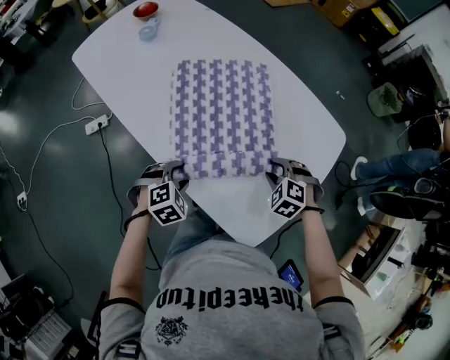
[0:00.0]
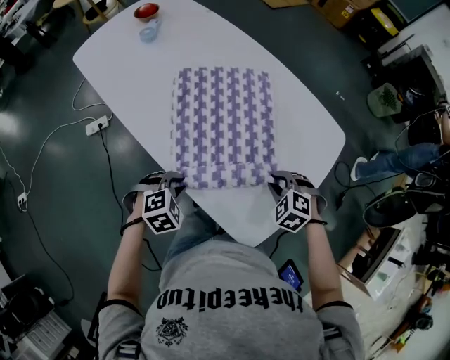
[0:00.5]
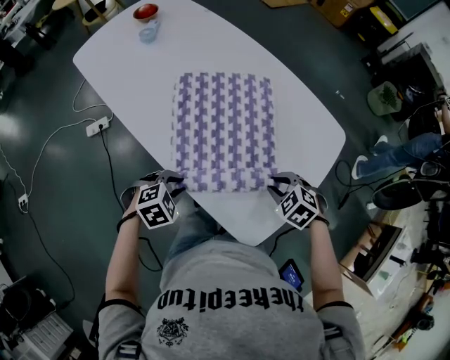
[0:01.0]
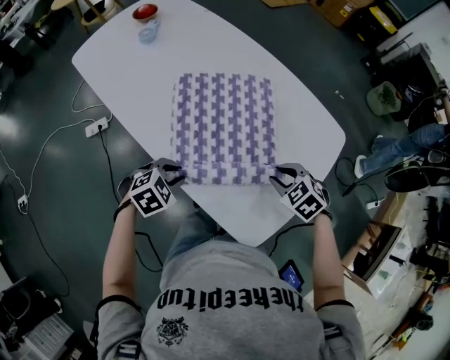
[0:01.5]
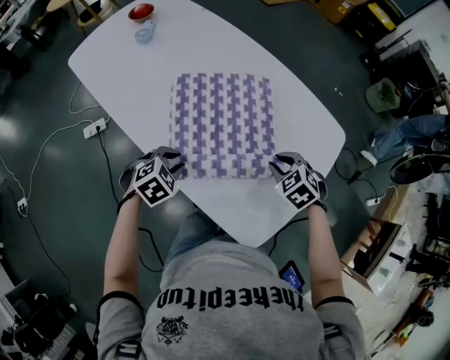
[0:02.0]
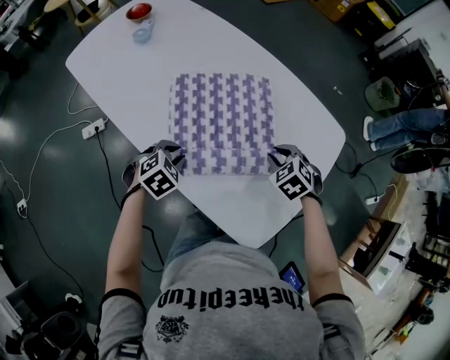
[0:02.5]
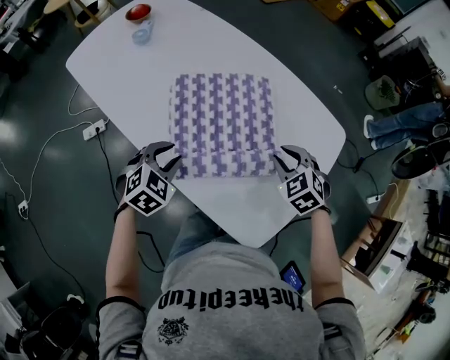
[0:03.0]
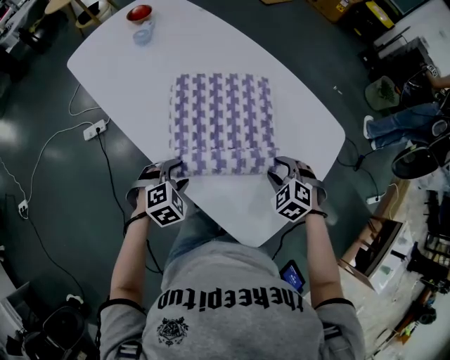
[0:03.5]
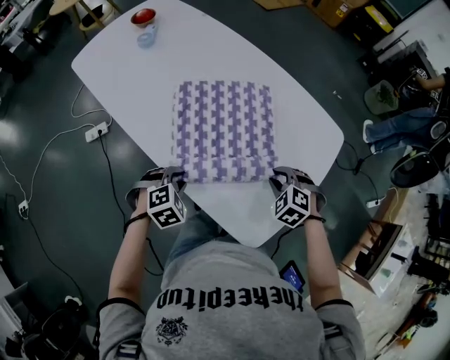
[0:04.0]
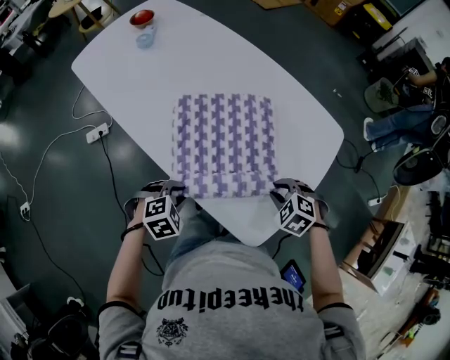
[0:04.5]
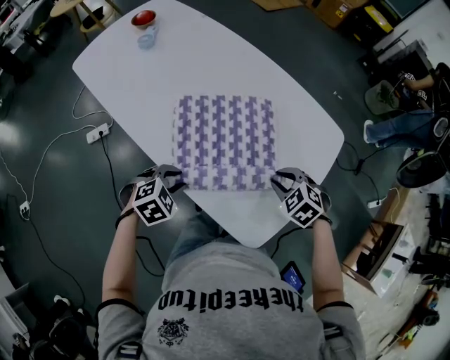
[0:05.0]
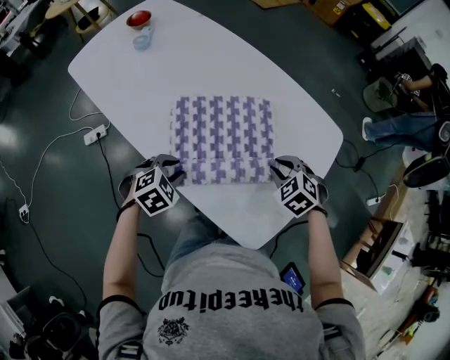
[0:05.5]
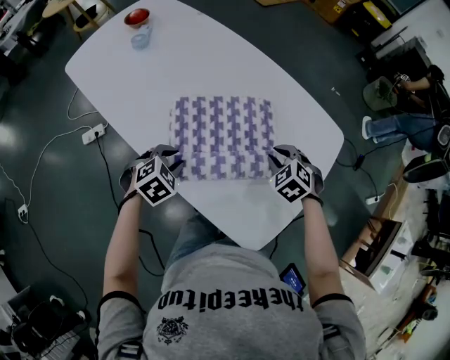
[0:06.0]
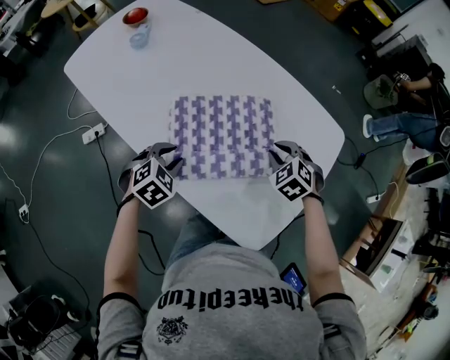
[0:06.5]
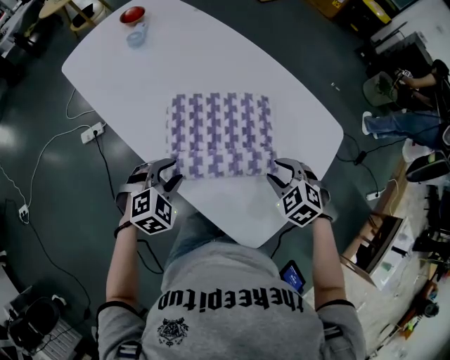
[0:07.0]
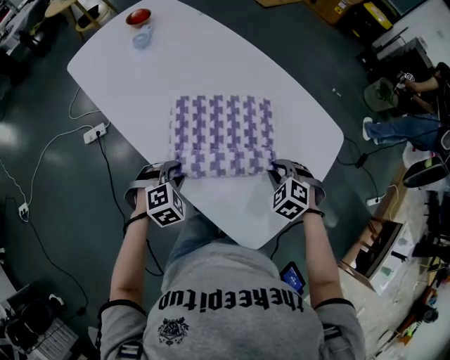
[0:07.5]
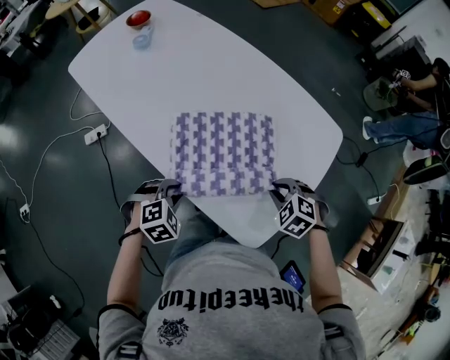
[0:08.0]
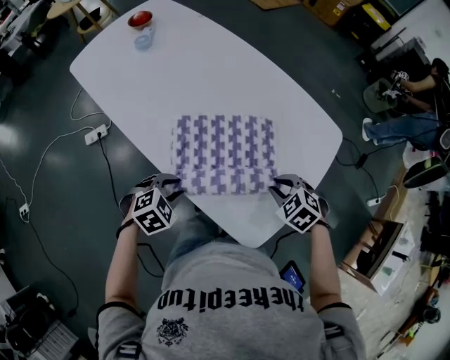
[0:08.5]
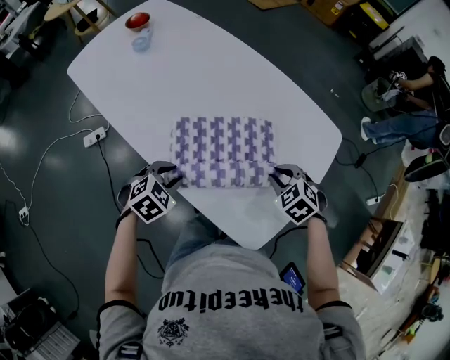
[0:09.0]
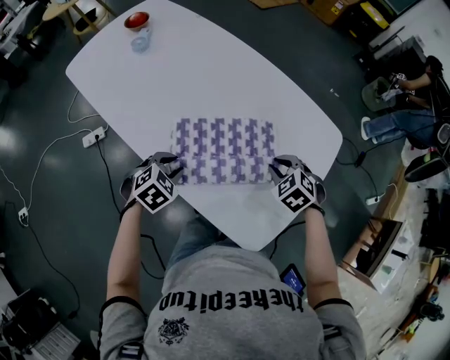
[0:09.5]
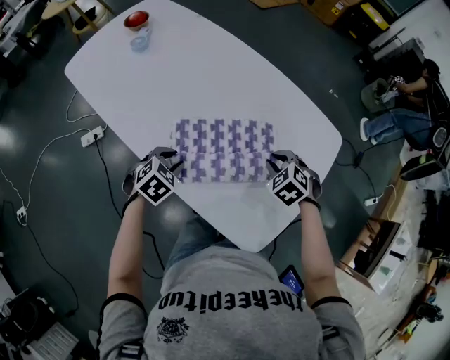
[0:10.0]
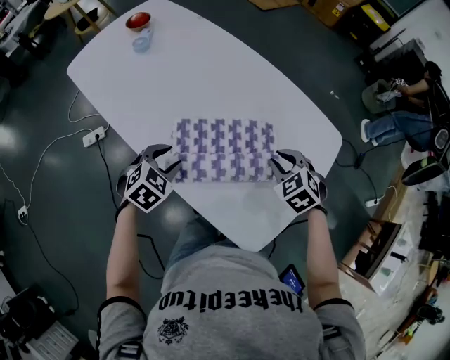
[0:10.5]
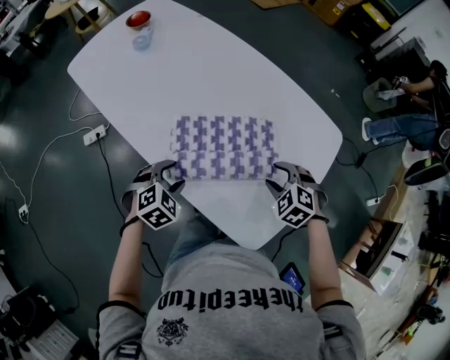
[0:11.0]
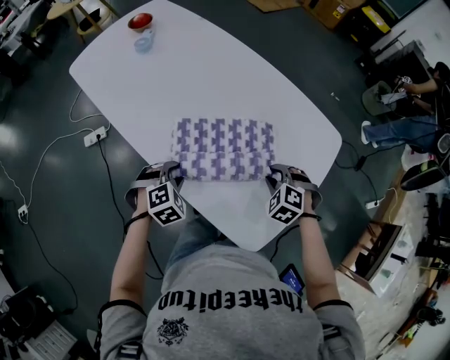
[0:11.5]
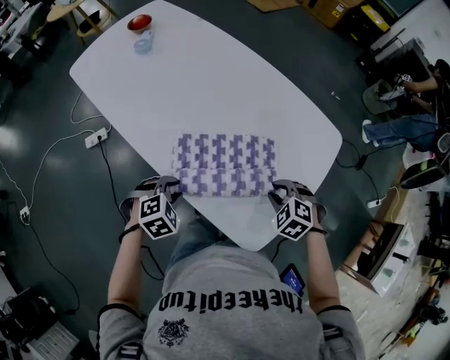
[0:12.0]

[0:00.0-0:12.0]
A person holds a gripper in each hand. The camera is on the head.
0:00.0 to 0:02.0: The left gripper is displaced forward by some 5 cm, and closes its fingers. Meanwhile the right gripper moves roughly 5 cm, and rotates roughly 20 degrees.
0:02.0 to 0:04.0: Both grippers travel together backward, roughly 5 cm. The right gripper opens, then closes once more; the left gripper opens, then closes again.
0:04.0 to 0:06.0: Both grippers move forward, some 10 cm.
0:06.0 to 0:08.0: The right gripper travels backward by some 5 cm.
0:08.0 to 0:10.0: Both grippers travel together forward, approximately 10 cm. The left gripper rotates roughly 20 degrees.
0:10.0 to 0:12.0: The left gripper opens, then closes once more, while the right gripper shifts roughly 5 cm backward, and opens and closes again.

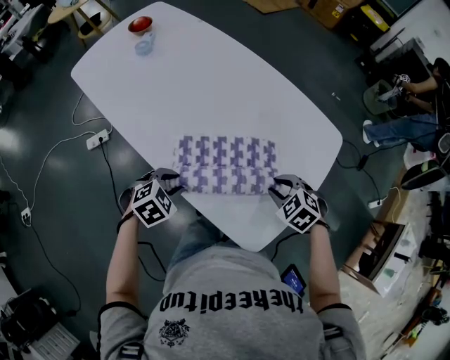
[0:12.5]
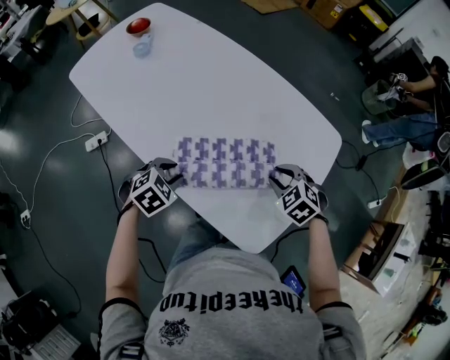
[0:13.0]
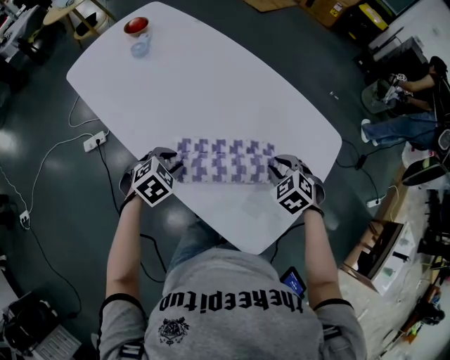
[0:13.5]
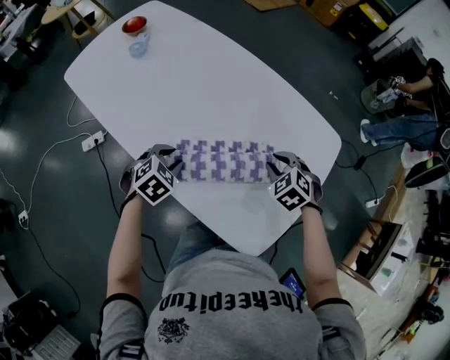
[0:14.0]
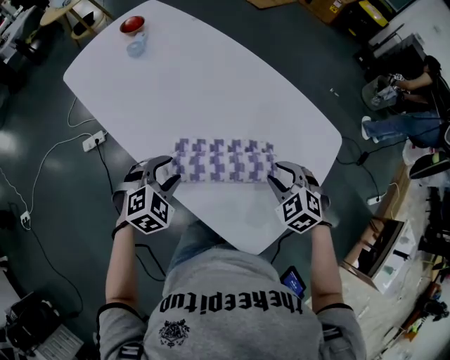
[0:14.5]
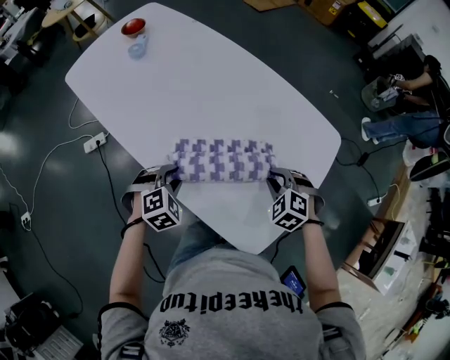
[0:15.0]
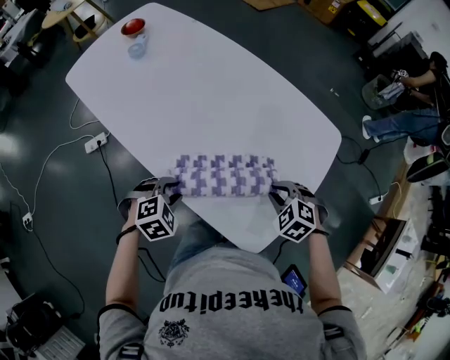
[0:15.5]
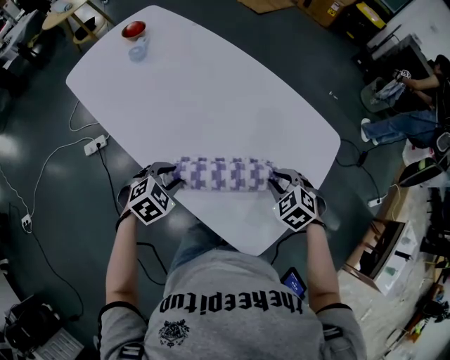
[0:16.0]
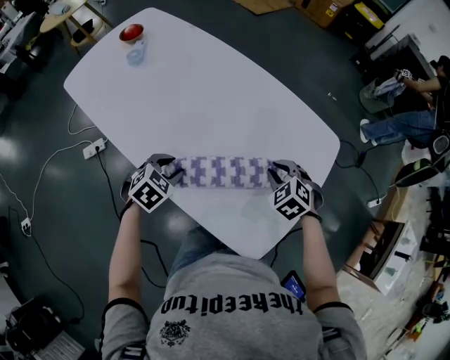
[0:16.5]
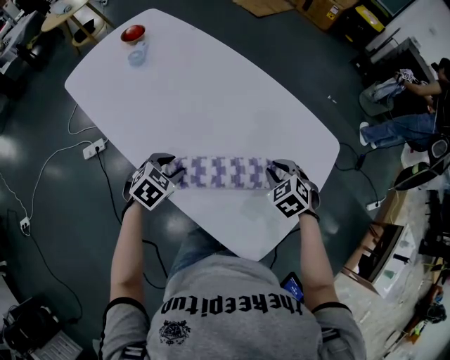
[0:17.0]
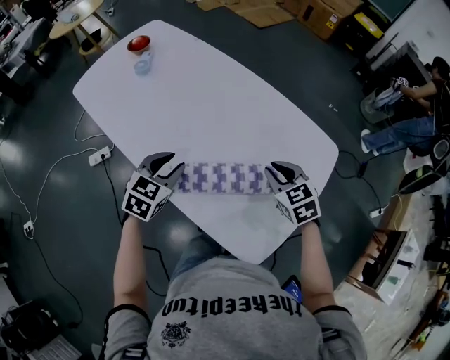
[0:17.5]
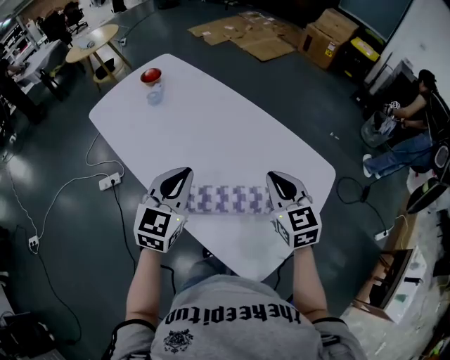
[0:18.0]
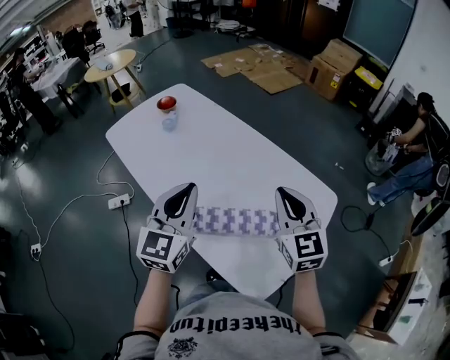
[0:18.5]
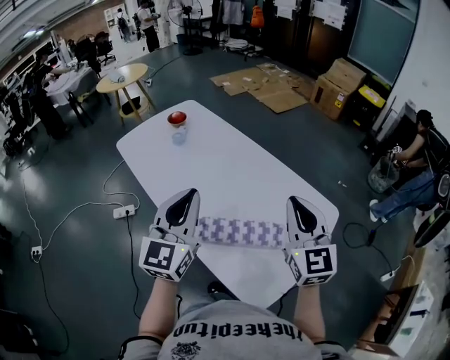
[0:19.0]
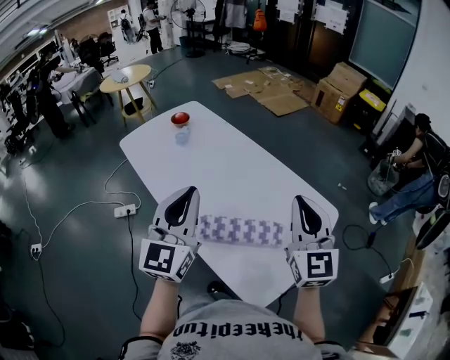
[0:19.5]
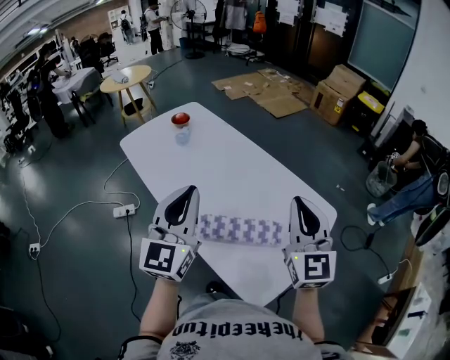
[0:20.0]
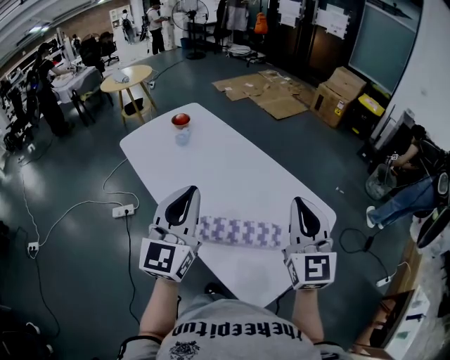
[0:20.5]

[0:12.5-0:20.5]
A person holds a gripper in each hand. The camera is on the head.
0:12.5 to 0:14.5: The grippers both shift forward by about 5 cm.
0:16.5 to 0:18.5: The two grippers go about 40 cm upward. The right gripper angles its fingers upward, by about 50 degrees. The left gripper angles its fingers upward, by some 50 degrees, and closes up.
0:18.5 to 0:20.5: The grippers both shift upward by about 15 cm.

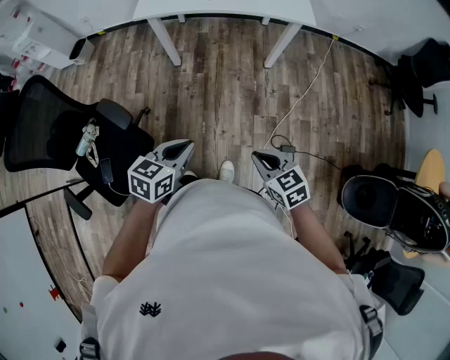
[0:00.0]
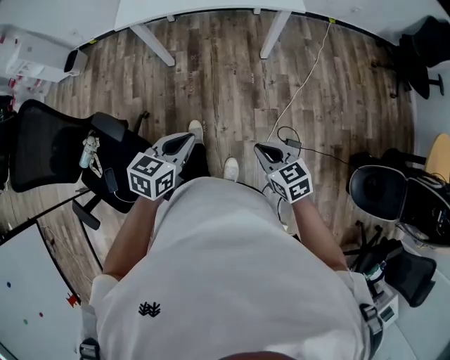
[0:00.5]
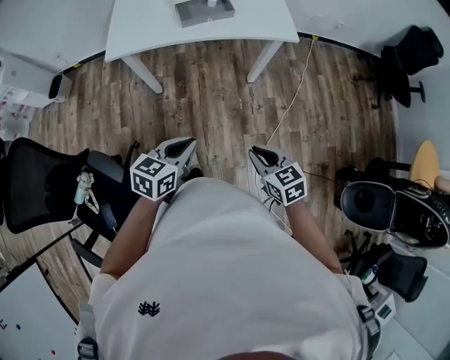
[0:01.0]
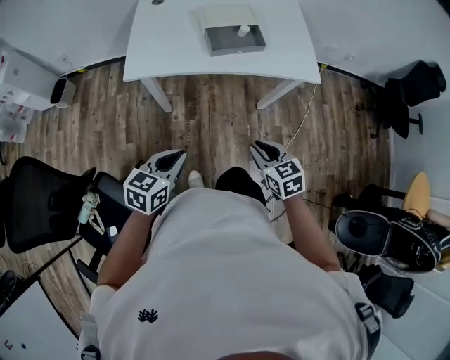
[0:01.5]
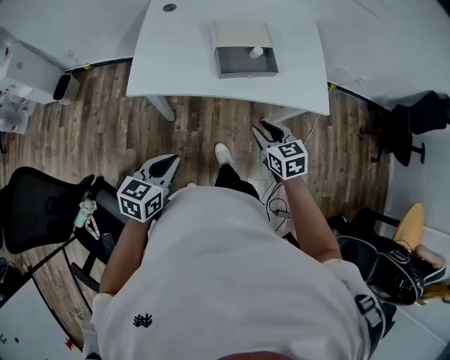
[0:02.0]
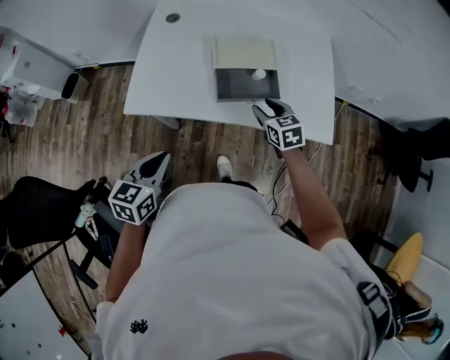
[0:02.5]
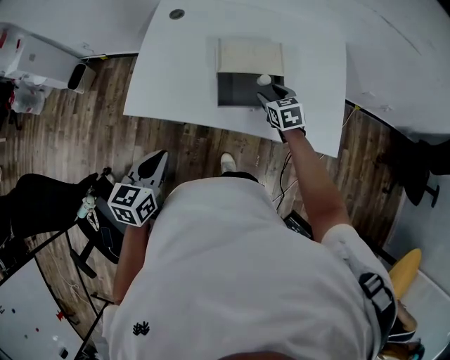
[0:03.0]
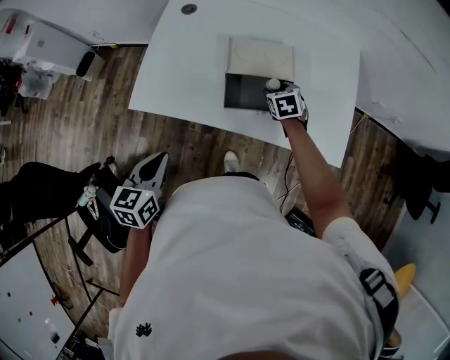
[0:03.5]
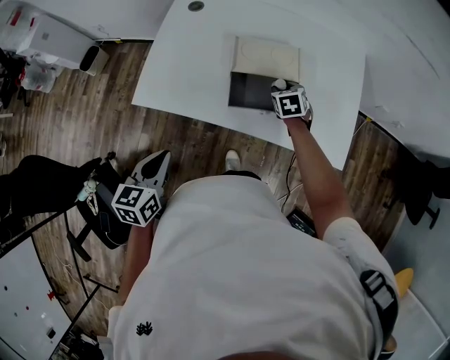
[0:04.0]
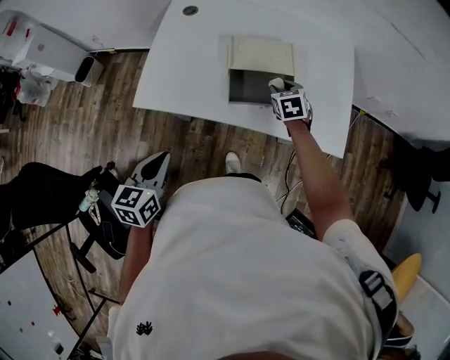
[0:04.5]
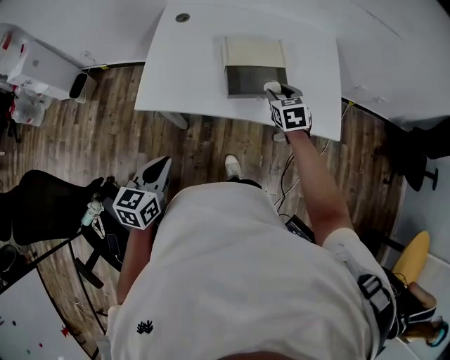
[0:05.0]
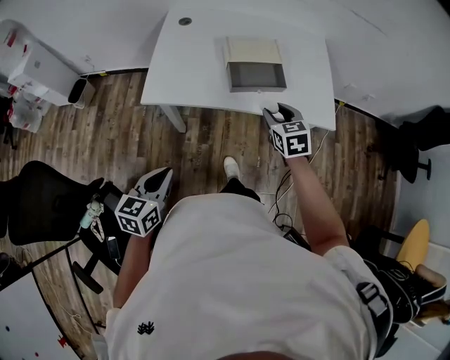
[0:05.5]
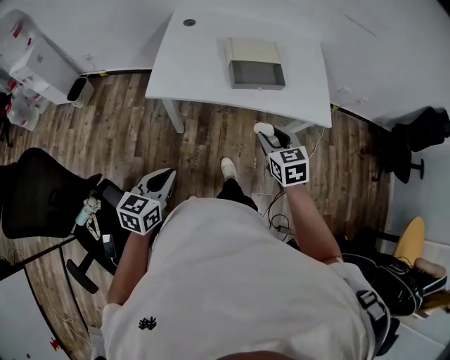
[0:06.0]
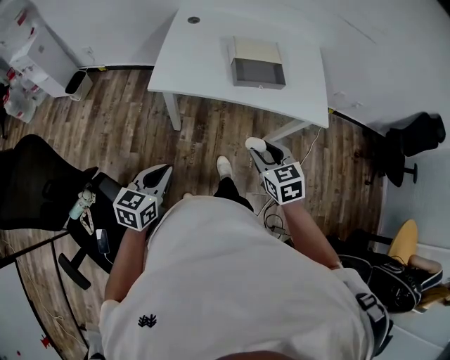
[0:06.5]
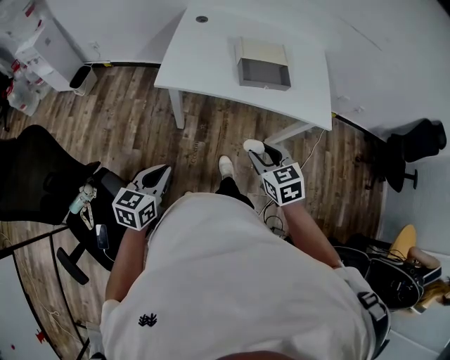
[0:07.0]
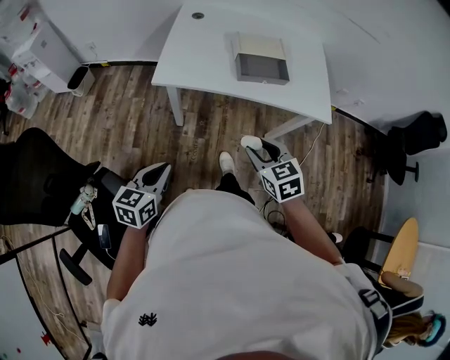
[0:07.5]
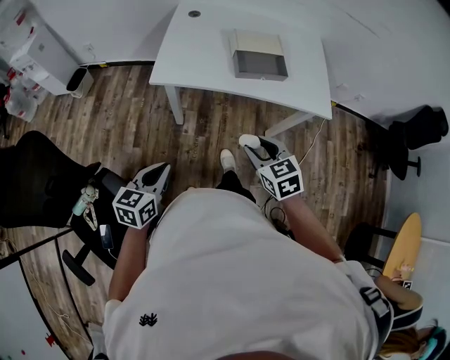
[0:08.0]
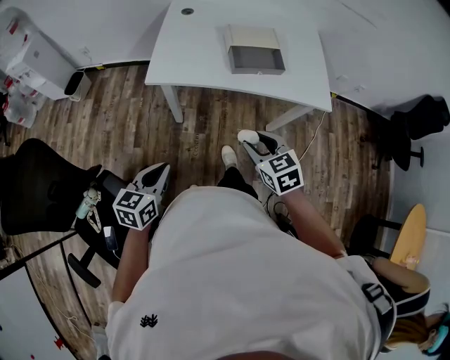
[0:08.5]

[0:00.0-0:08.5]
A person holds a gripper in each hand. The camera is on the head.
0:00.0 to 0:02.0: The two grippers go some 40 cm forward. The right gripper opens up.
0:02.0 to 0:04.0: The left gripper moves forward, roughly 10 cm, and rotates about 30 degrees; the right gripper travels forward by about 30 cm.
0:04.0 to 0:06.5: The left gripper shifts approximately 20 cm backward, while the right gripper is displaced backward by some 40 cm.
0:06.5 to 0:08.5: The grippers stay close to where they were, moving slightly.
